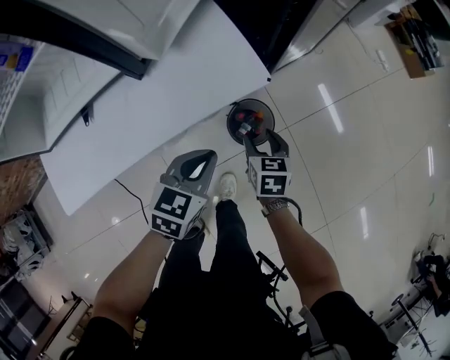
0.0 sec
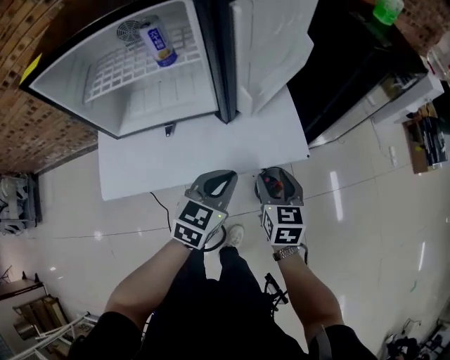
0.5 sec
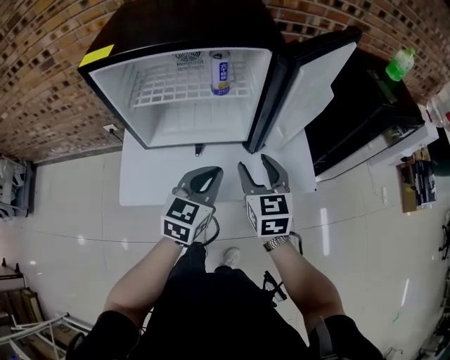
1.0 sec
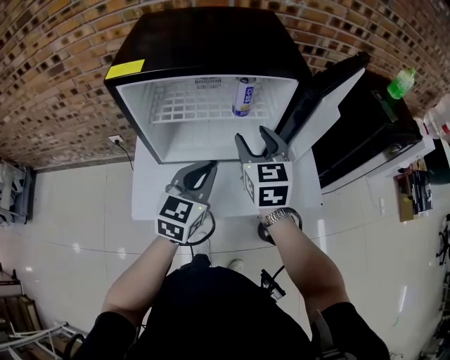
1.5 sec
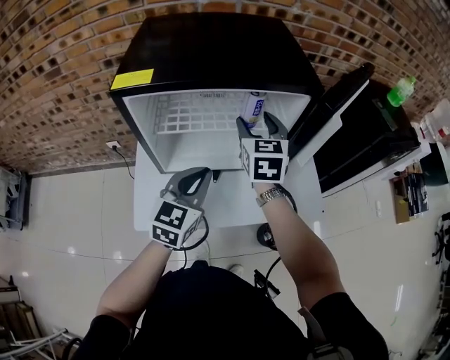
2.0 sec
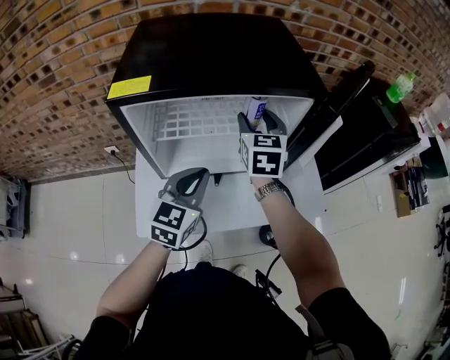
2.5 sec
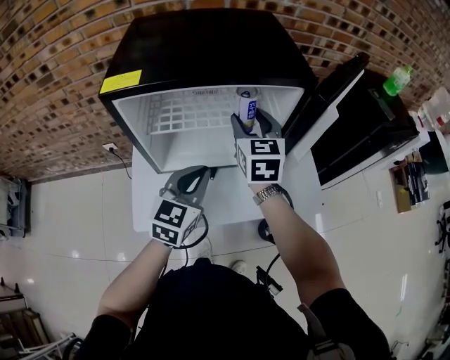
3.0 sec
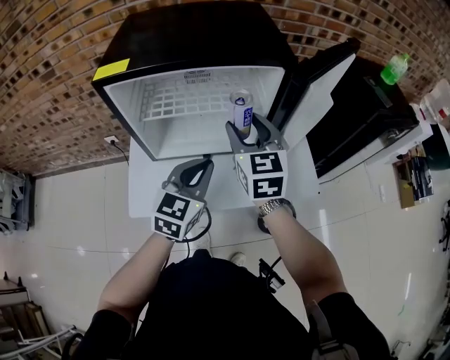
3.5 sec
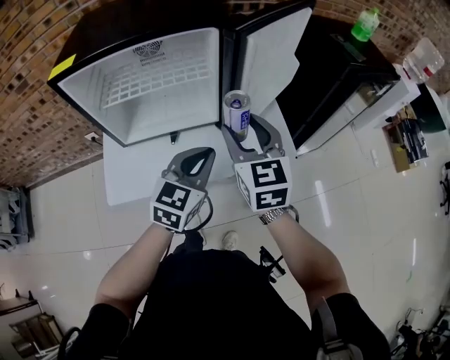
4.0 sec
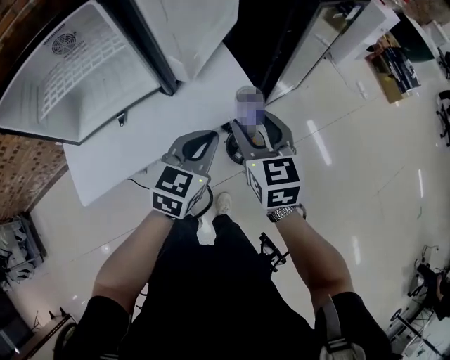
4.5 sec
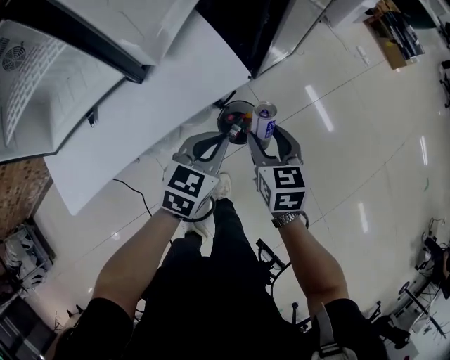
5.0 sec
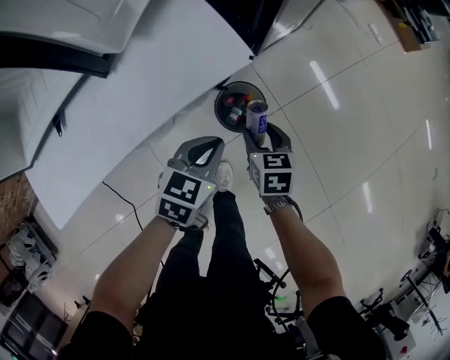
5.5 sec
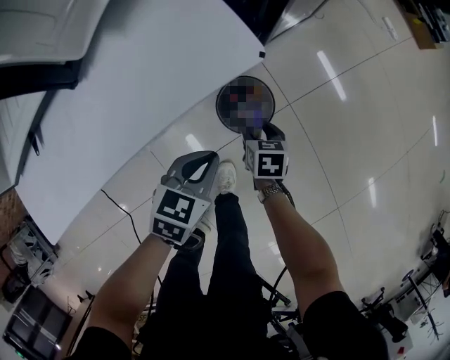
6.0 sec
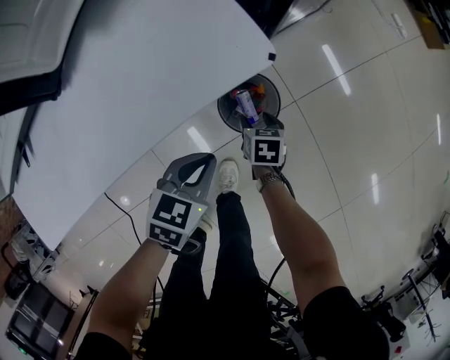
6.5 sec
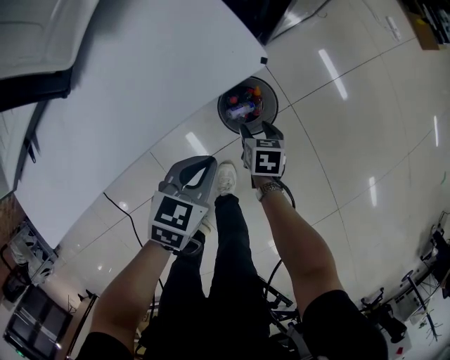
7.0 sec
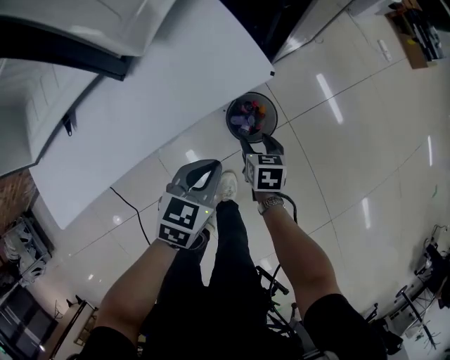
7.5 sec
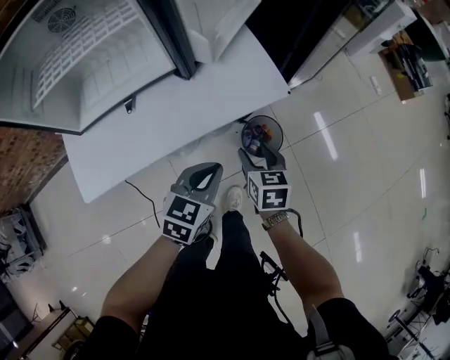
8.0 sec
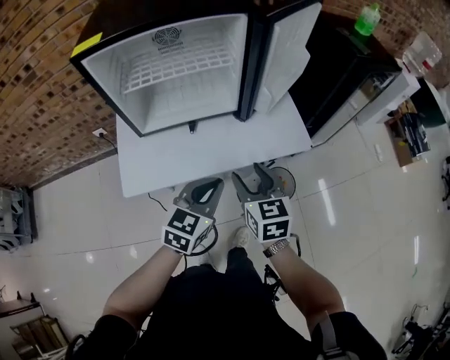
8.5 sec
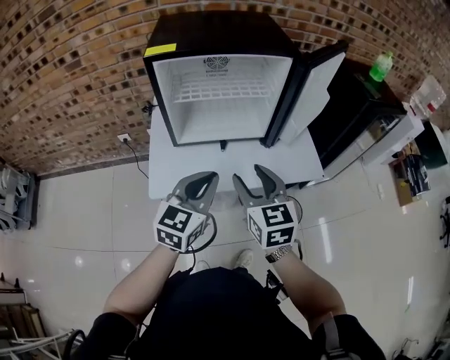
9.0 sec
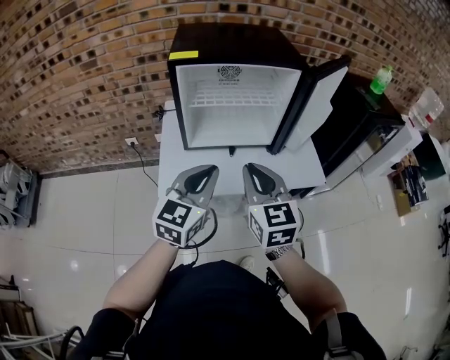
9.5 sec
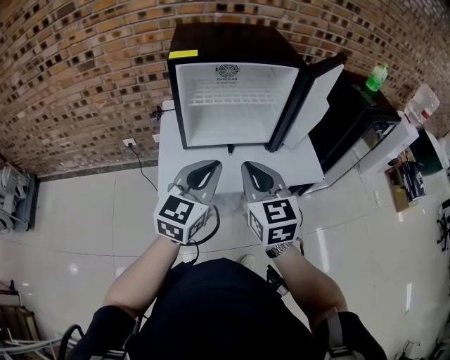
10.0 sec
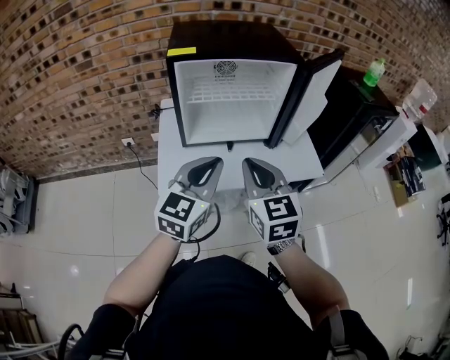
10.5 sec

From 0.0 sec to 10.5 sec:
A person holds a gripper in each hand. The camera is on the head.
From 0.0 sec to 2.0 sec: The right gripper shifts by approximately 60 cm, and rotates roughly 40 degrees; the left gripper shifts by roughly 50 cm, and turns by some 40 degrees.
From 2.0 sec to 4.0 sec: The left gripper heads to the right, covering about 15 cm; the right gripper heads backward and to the right, covering some 20 cm.
From 4.0 sec to 6.5 sec: The right gripper travels downward by about 70 cm, and angles its fingers downward, by approximately 50 degrees. The left gripper heads downward, covering some 40 cm, and tips its fingers downward by approximately 30 degrees.
From 6.5 sec to 8.5 sec: The grippers both shift upward and to the left by approximately 50 cm. The left gripper turns by about 40 degrees; the right gripper tilts its fingers some 40 degrees upward.
From 8.5 sec to 10.5 sec: The grippers both shift upward and to the left by some 20 cm. The left gripper turns by some 20 degrees, while the right gripper closes.

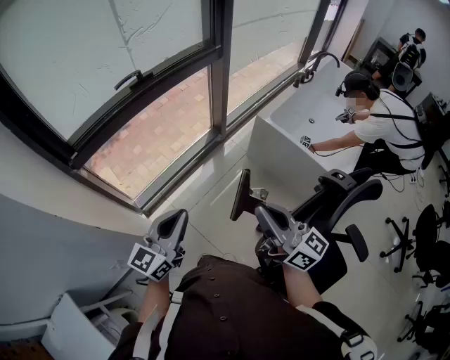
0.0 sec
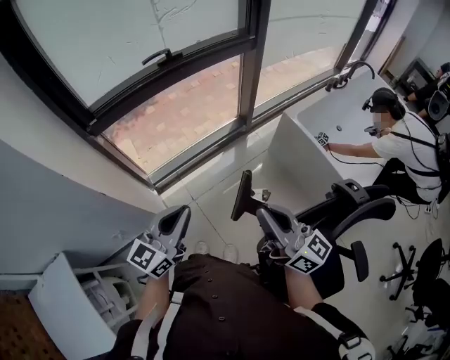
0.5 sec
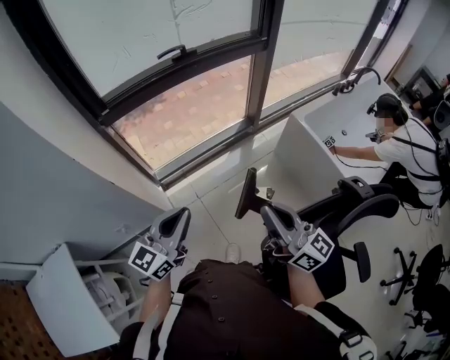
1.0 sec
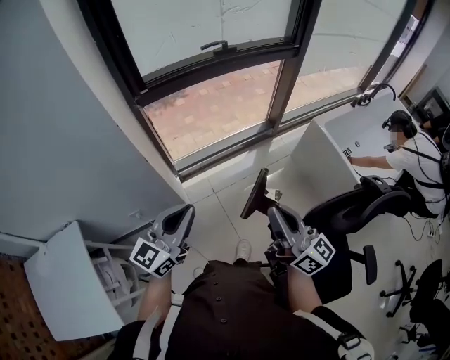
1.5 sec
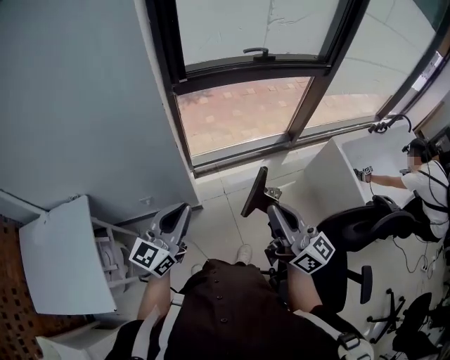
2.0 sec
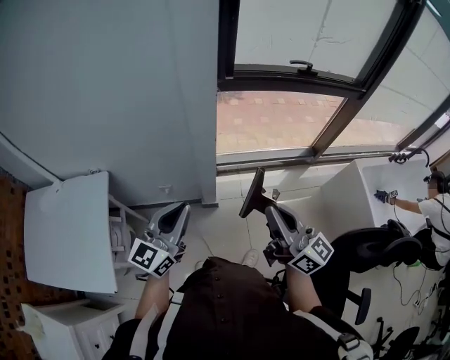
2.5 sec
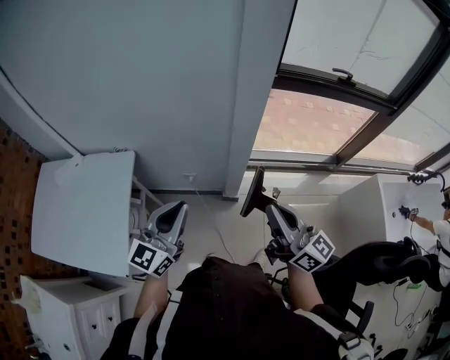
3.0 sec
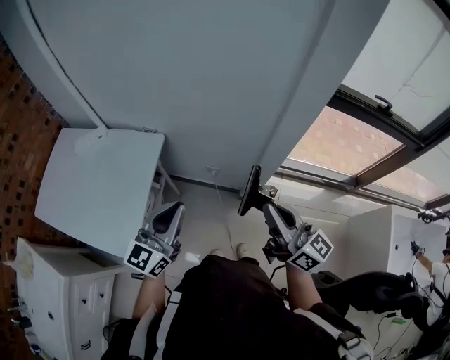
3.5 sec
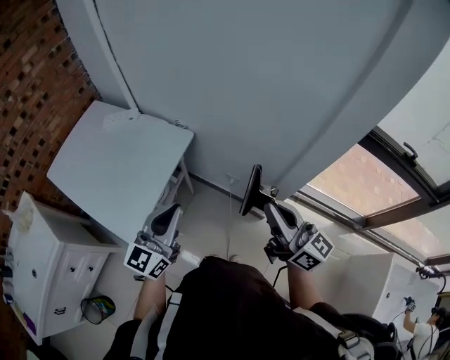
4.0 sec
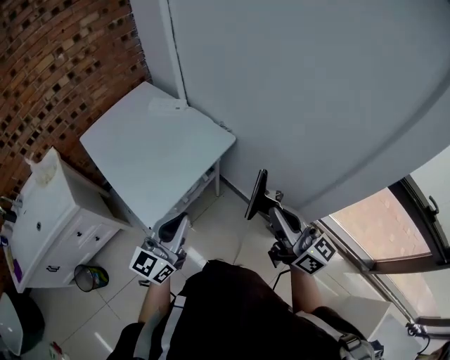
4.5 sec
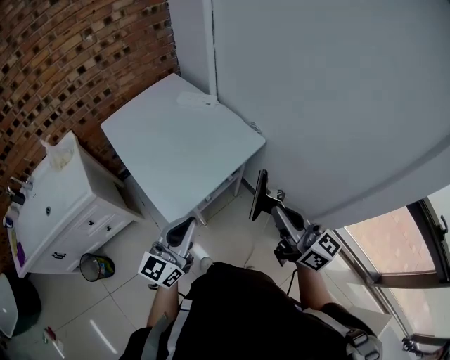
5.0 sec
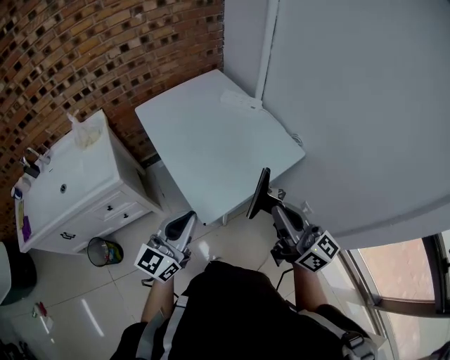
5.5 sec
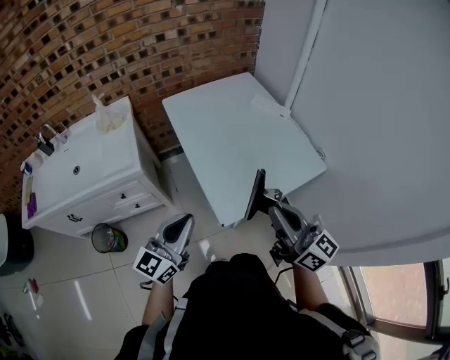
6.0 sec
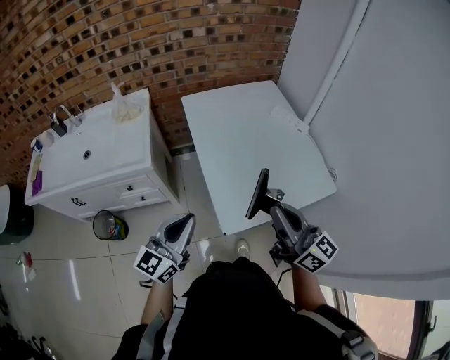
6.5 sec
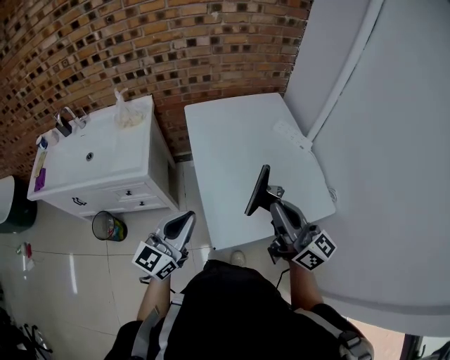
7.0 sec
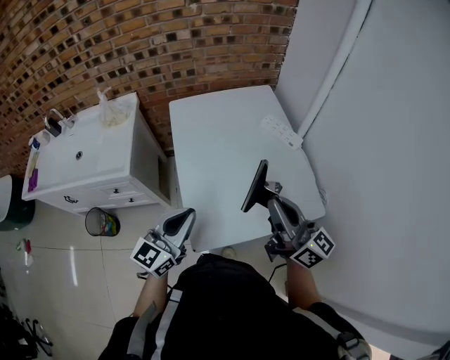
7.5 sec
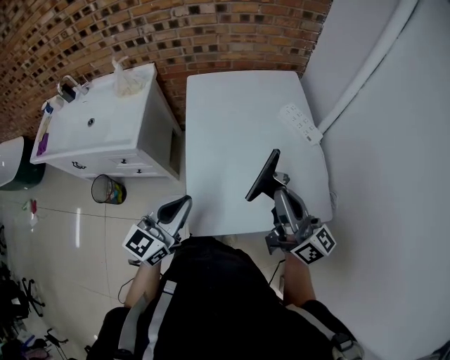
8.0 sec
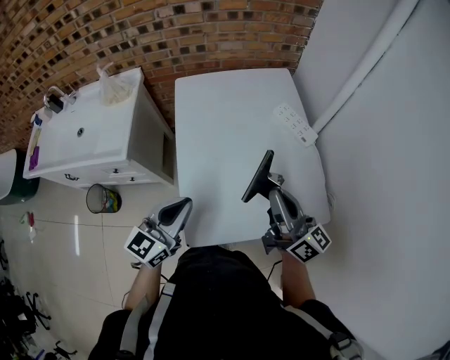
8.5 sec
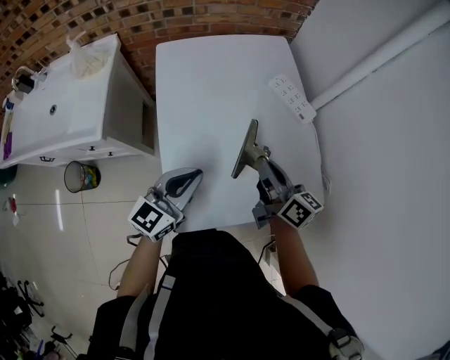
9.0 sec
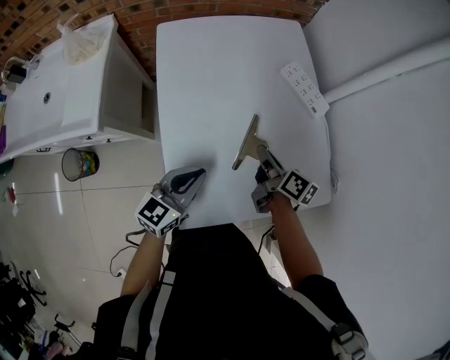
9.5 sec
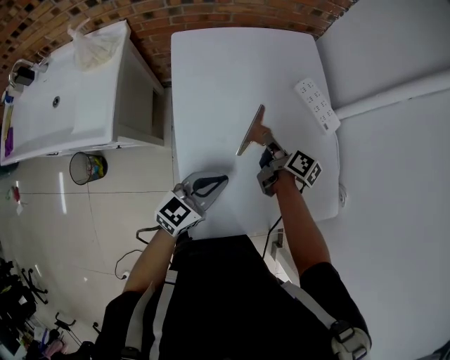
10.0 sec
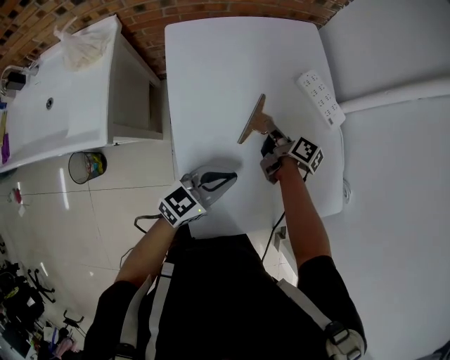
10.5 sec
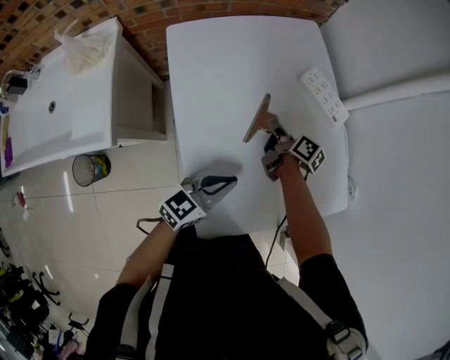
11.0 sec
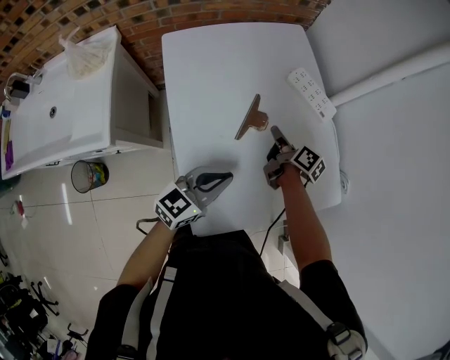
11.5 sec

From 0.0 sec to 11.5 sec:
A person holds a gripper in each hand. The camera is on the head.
From 0.0 sec to 2.0 sec: Both grippers move to the left and backward, some 25 cm. The left gripper changes its angle by approximately 30 degrees, while the right gripper swivels some 20 degrees.
From 2.0 sec to 4.0 sec: The left gripper shifts by approximately 35 cm, and turns by about 50 degrees; the right gripper moves some 35 cm, and changes its angle by some 50 degrees.
From 4.0 sec to 6.0 sec: The right gripper ends up some 40 cm from where it was, and rotates roughly 40 degrees, while the left gripper shifts by approximately 35 cm, and rotates about 40 degrees.
From 6.0 sec to 7.5 sec: Both grippers travel together forward and to the right, about 20 cm.
From 7.5 sec to 9.5 sec: The left gripper travels downward and forward by about 20 cm. The right gripper shifts roughly 30 cm downward and forward, and tips its fingers downward by roughly 40 degrees.
From 9.5 sec to 11.5 sec: The right gripper travels forward by about 10 cm.

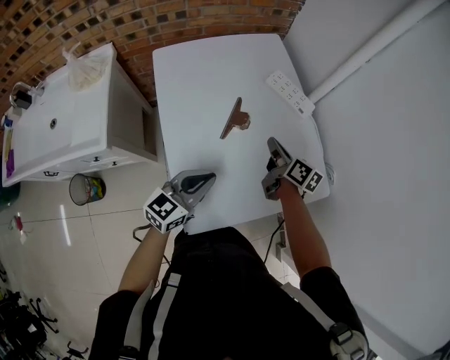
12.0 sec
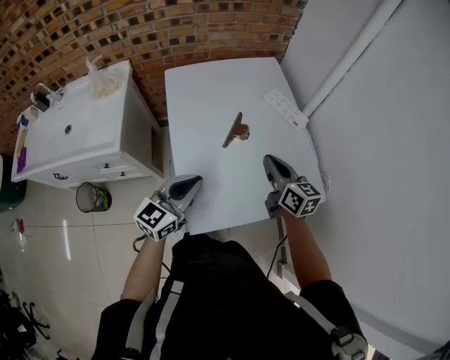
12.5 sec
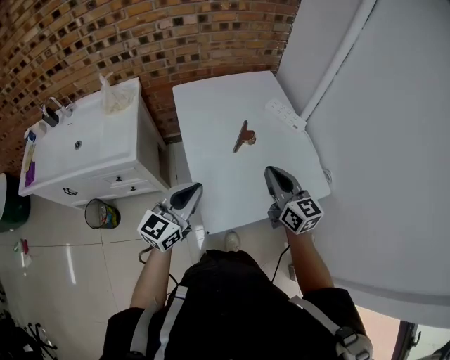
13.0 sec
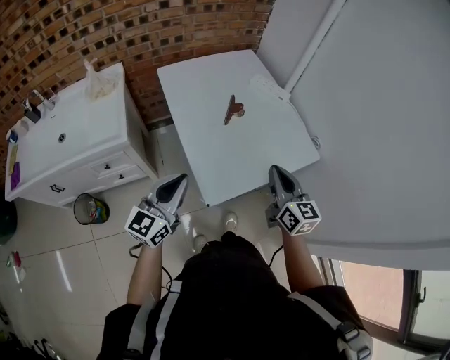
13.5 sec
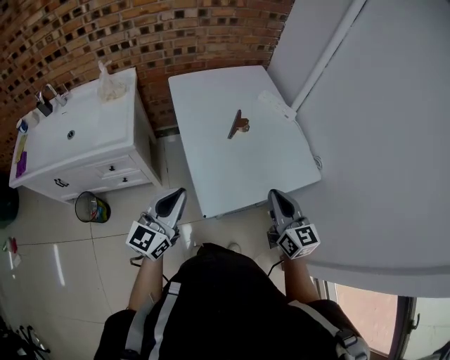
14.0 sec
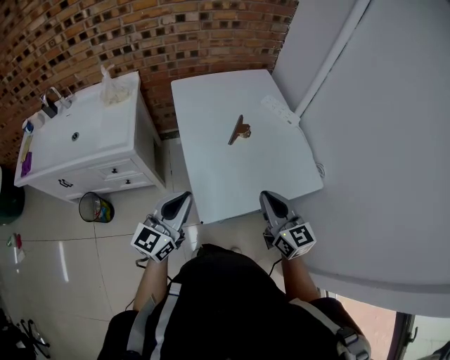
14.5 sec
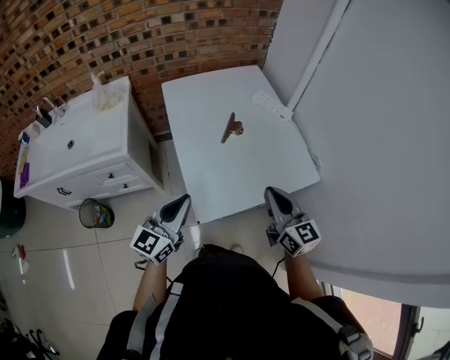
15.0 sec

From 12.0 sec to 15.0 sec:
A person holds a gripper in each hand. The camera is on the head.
From 12.0 sec to 13.5 sec: The right gripper is displaced backward and upward by some 30 cm, and swivels about 40 degrees. The left gripper heads backward, to the left and upward, covering approximately 25 cm.
From 13.5 sec to 15.0 sec: The left gripper moves to the right, some 5 cm.

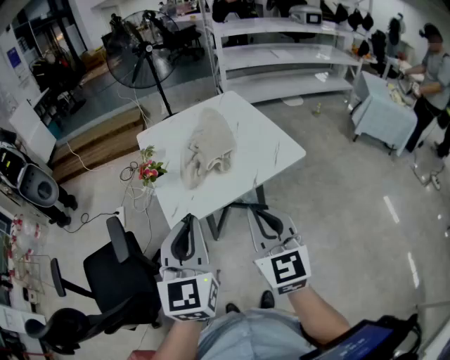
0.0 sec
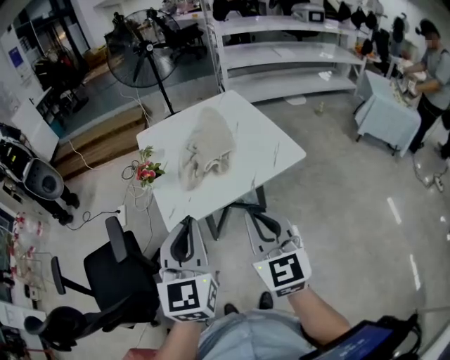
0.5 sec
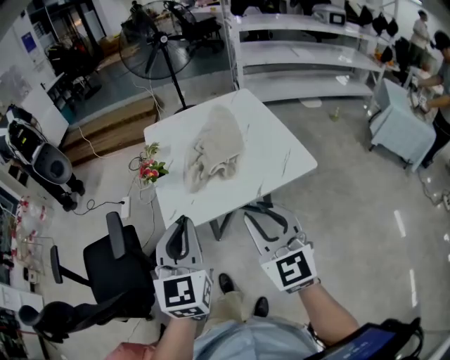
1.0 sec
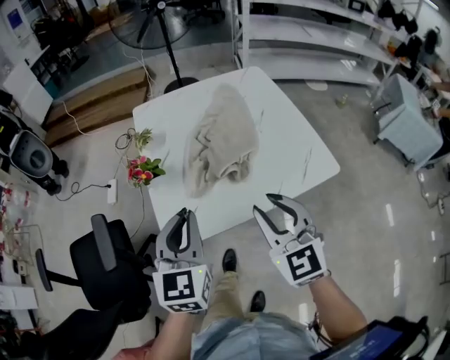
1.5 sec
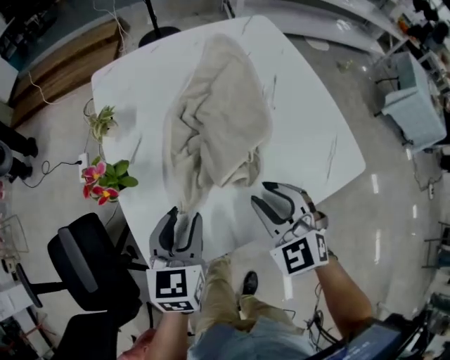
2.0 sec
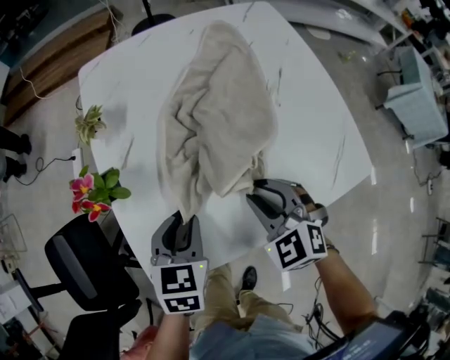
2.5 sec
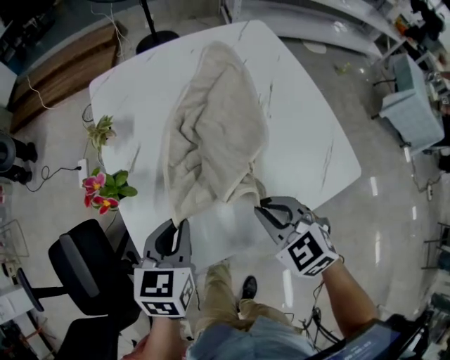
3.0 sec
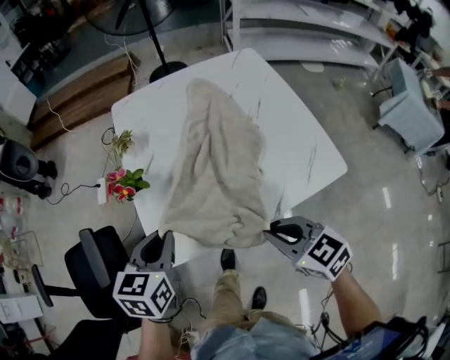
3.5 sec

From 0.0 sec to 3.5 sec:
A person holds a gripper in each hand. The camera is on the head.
From 0.0 sec to 2.0 sec: The left gripper travels downward and forward by roughly 40 cm, turns by some 30 degrees, and opens its fingers; the right gripper goes roughly 35 cm forward and downward, swivels about 40 degrees, and opens.
From 2.0 sec to 3.5 sec: The right gripper is displaced backward by approximately 10 cm, turns by about 40 degrees, and closes, while the left gripper goes about 10 cm upward, and closes its fingers.
